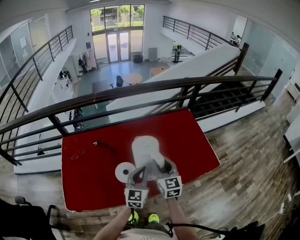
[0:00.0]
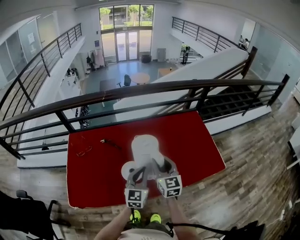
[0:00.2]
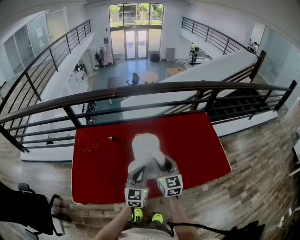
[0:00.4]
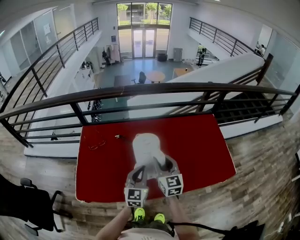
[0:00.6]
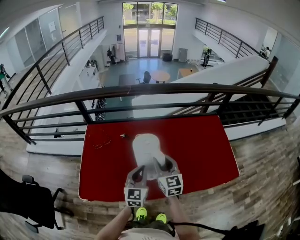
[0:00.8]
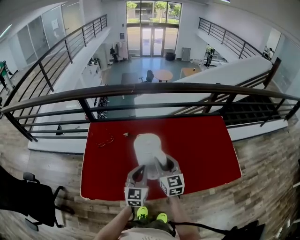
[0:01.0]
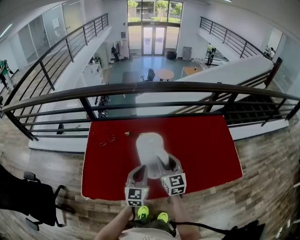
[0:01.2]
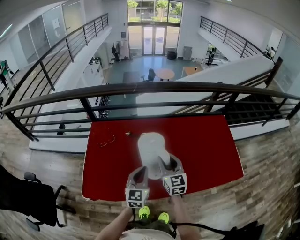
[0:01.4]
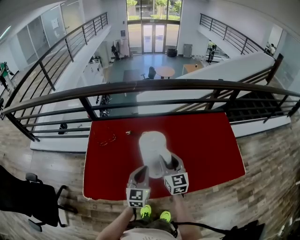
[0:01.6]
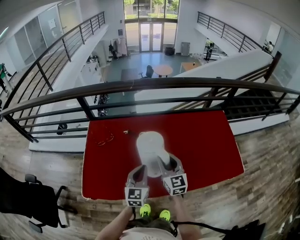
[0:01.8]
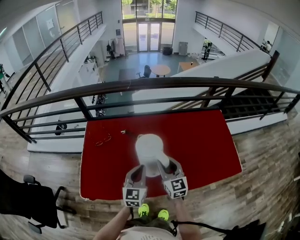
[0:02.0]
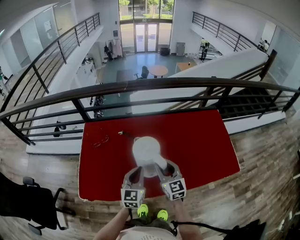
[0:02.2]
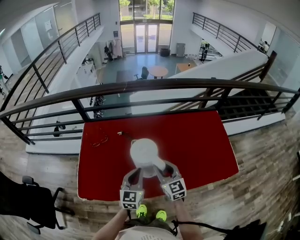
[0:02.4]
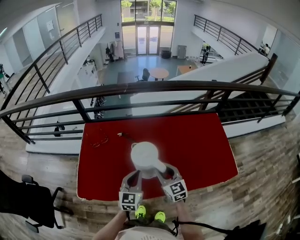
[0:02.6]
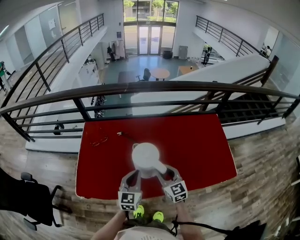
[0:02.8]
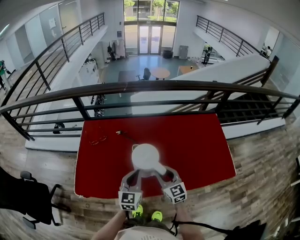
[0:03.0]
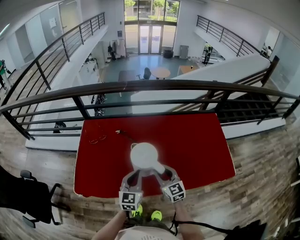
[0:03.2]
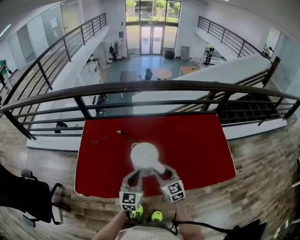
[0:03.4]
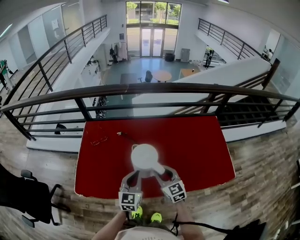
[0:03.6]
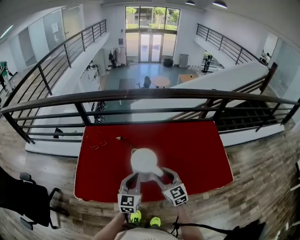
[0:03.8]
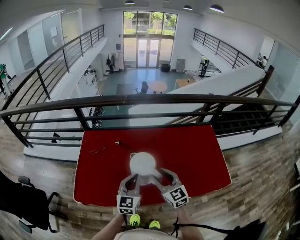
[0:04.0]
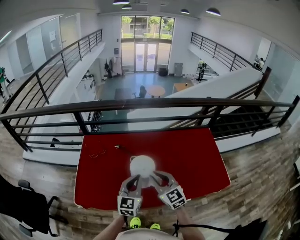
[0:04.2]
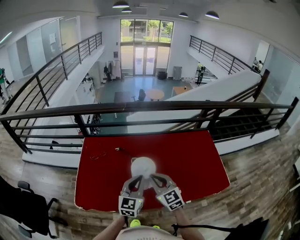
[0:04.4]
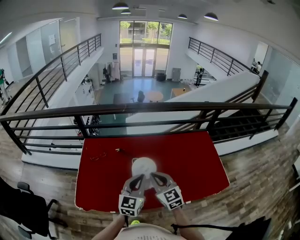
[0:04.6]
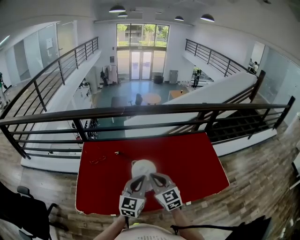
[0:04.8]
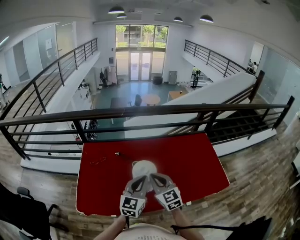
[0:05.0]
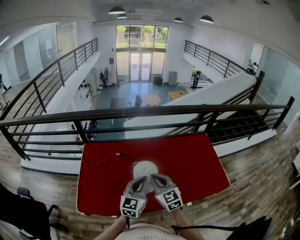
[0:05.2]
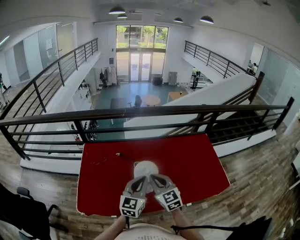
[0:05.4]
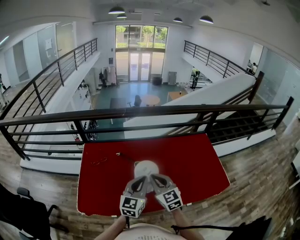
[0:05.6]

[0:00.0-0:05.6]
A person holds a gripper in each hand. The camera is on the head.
0:00.0 to 0:01.4: The grippers both shift to the left by roughly 15 cm.
0:01.4 to 0:02.8: The right gripper moves backward and downward, some 10 cm.
0:02.8 to 0:04.2: Both grippers move upward, roughly 10 cm.
0:04.2 to 0:05.6: The grippers move only a little.

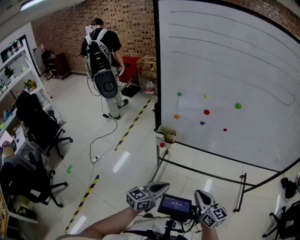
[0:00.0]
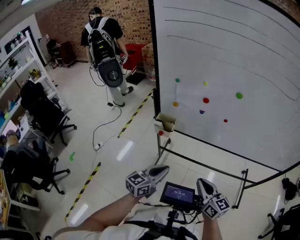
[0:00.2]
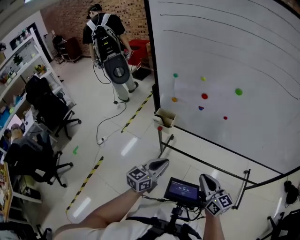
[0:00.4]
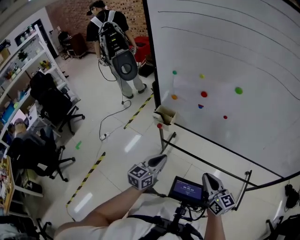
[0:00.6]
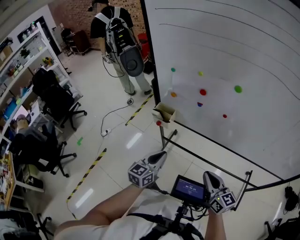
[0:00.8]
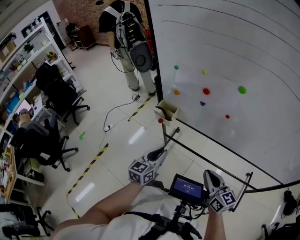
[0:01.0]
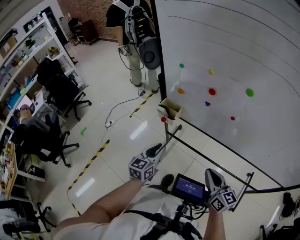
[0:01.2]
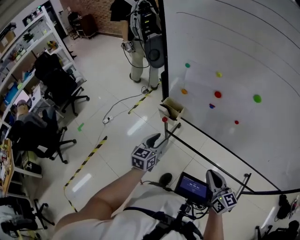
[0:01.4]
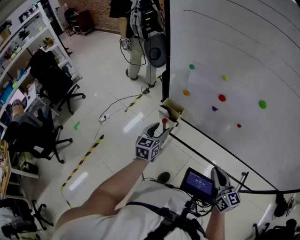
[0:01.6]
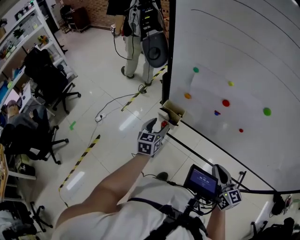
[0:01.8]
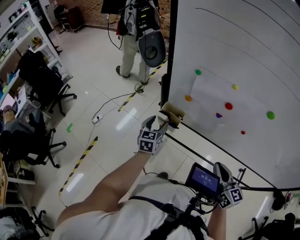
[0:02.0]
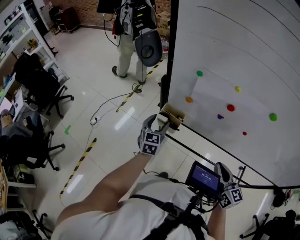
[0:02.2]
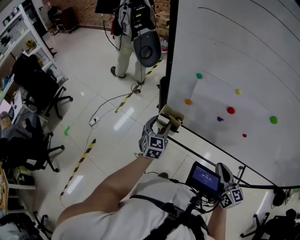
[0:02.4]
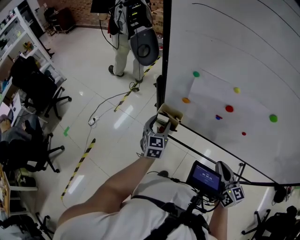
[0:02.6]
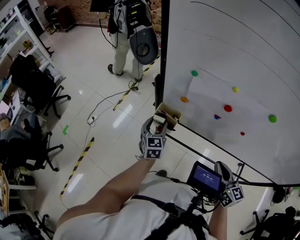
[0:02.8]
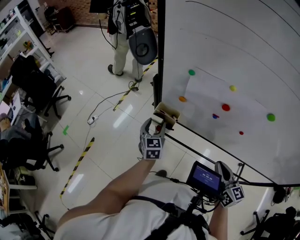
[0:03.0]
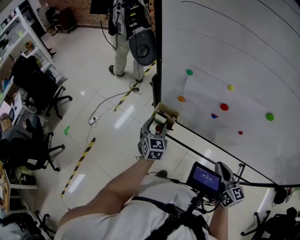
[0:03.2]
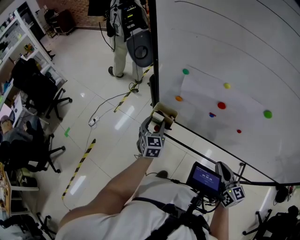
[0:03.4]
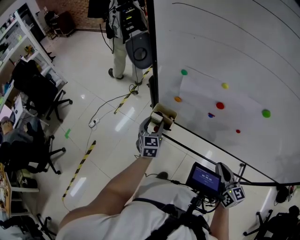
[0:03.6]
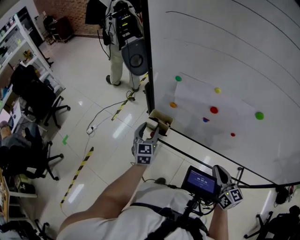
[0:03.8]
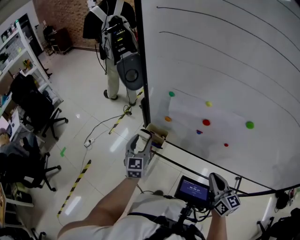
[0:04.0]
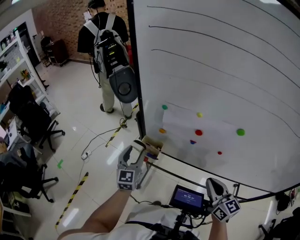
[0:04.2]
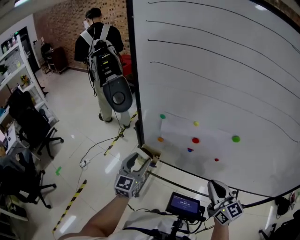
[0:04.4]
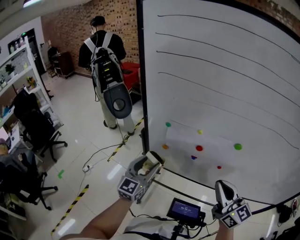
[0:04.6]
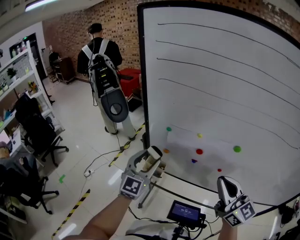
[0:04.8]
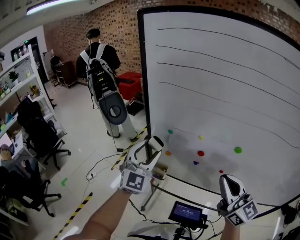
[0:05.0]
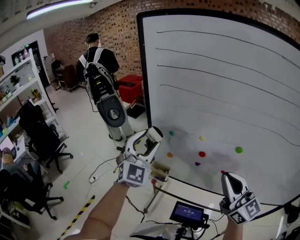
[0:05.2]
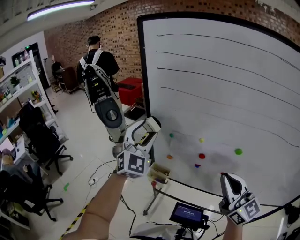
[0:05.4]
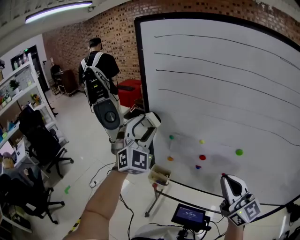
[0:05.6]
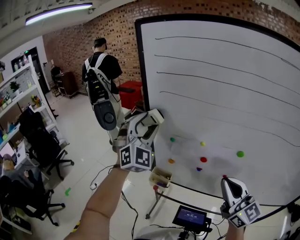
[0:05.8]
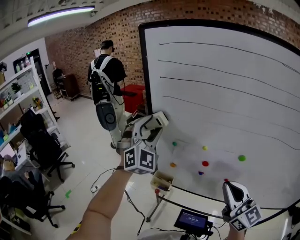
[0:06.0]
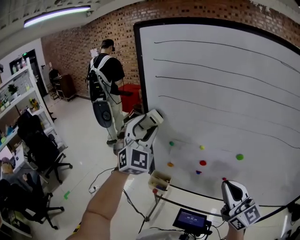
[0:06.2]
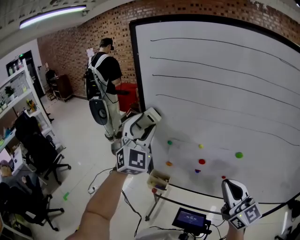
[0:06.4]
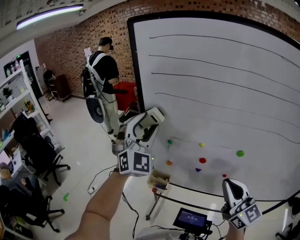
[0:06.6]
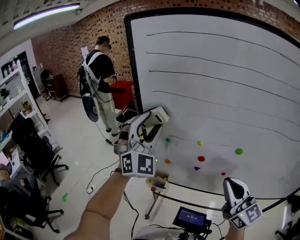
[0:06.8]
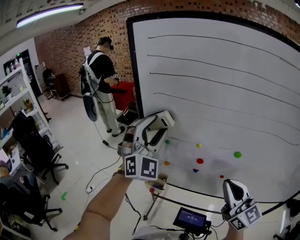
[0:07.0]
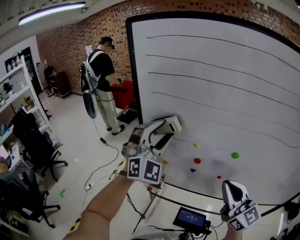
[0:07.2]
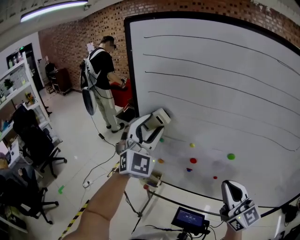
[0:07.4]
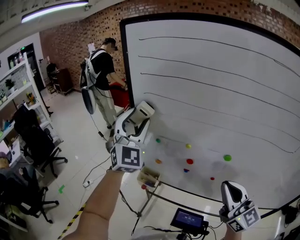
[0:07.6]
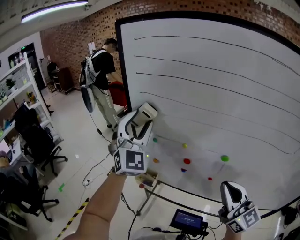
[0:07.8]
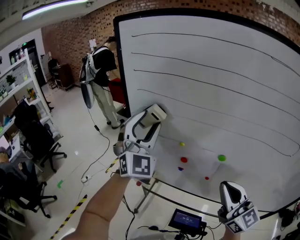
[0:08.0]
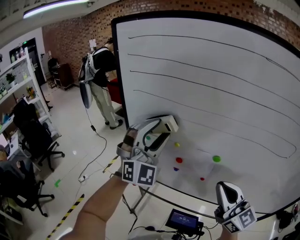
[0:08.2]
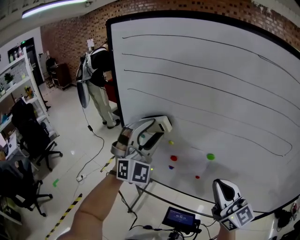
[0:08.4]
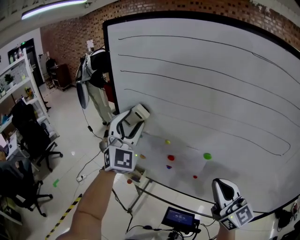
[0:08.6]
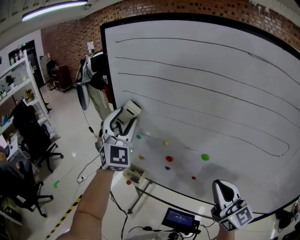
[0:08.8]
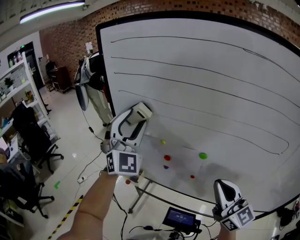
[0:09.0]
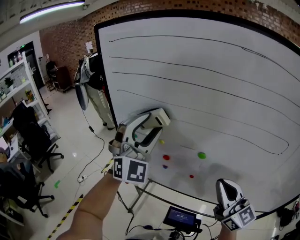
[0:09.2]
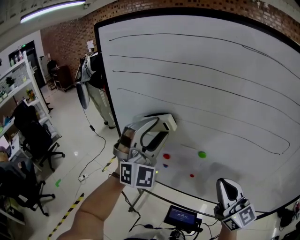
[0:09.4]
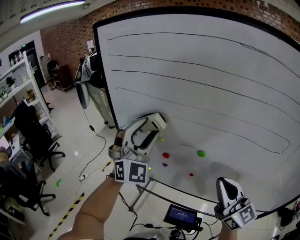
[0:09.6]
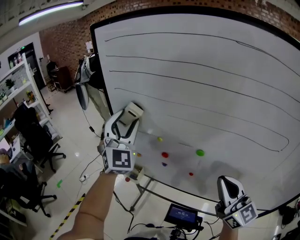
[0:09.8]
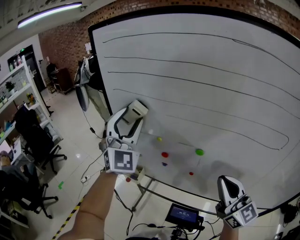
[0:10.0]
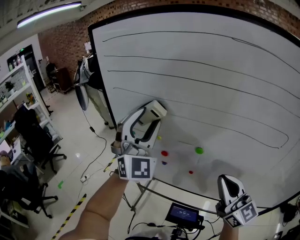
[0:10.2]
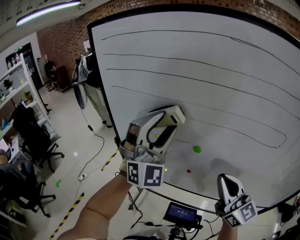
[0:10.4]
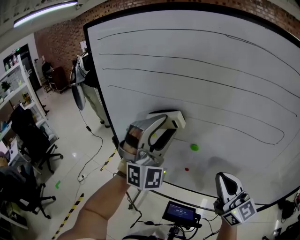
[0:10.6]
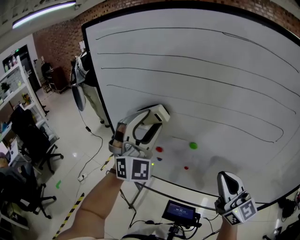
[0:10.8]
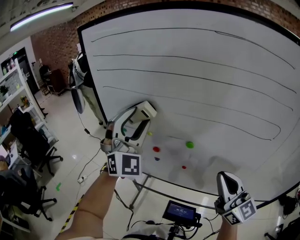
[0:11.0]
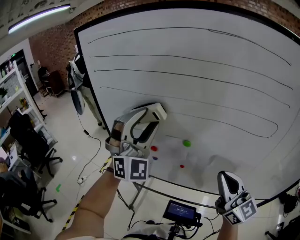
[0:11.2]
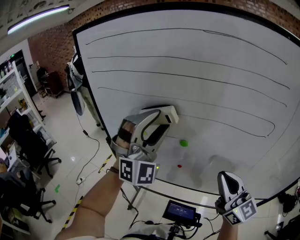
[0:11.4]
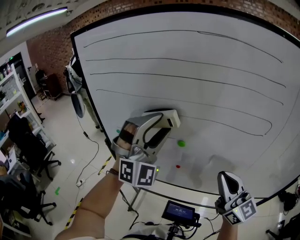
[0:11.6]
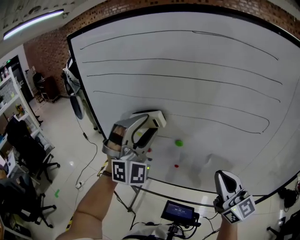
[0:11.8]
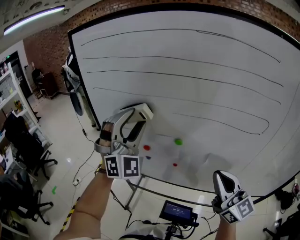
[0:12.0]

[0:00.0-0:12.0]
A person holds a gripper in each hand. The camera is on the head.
0:00.0 to 0:01.6: The right gripper heads forward and to the right, covering about 20 cm; the left gripper heads forward, covering approximately 25 cm, swivels about 40 degrees, and opens up.
0:01.6 to 0:03.0: The grippers both shift forward by about 10 cm.
0:03.0 to 0:04.4: Both grippers travel together upward, about 10 cm. The left gripper turns by roughly 30 degrees.
0:04.4 to 0:06.0: The left gripper is displaced upward by some 25 cm, and rolls clockwise, seen from behind, by some 60 degrees, while the right gripper shifts some 15 cm upward.
0:06.0 to 0:07.6: The left gripper travels to the right and back again, roughly 10 cm each way, while the right gripper goes some 5 cm to the right.
0:07.6 to 0:09.0: The right gripper is displaced to the right by about 10 cm, while the left gripper swings left and right, about 10 cm each way, with 2 reversals.
0:09.0 to 0:10.4: The left gripper swings left and right, roughly 15 cm each way, with 2 reversals.
0:10.4 to 0:12.0: The left gripper swings left and right, about 10 cm each way, with 2 reversals. The right gripper changes place by some 5 cm.

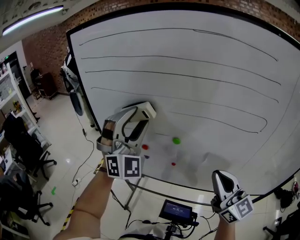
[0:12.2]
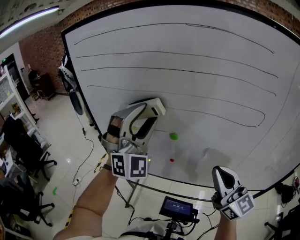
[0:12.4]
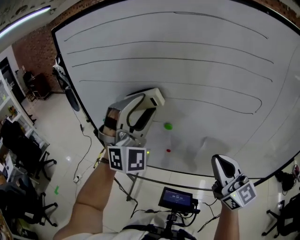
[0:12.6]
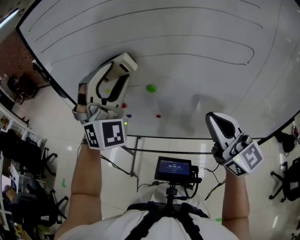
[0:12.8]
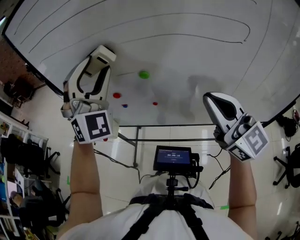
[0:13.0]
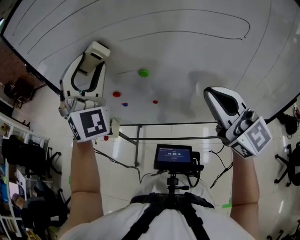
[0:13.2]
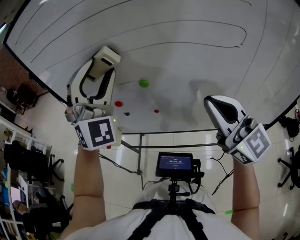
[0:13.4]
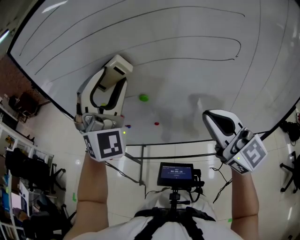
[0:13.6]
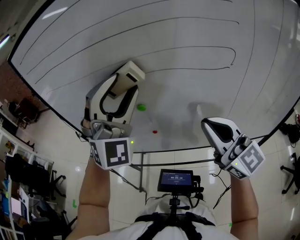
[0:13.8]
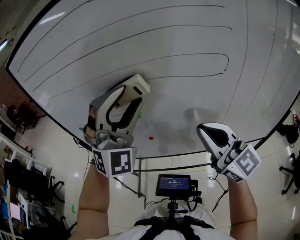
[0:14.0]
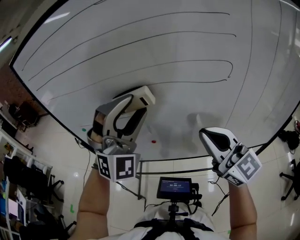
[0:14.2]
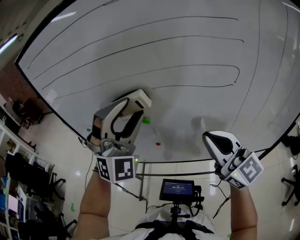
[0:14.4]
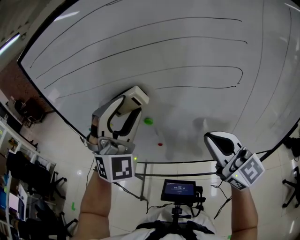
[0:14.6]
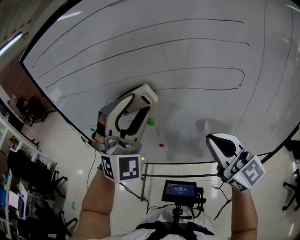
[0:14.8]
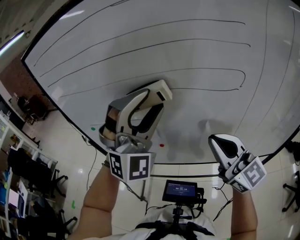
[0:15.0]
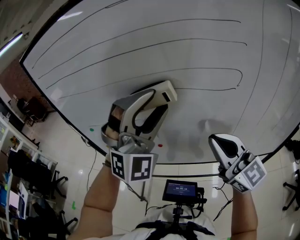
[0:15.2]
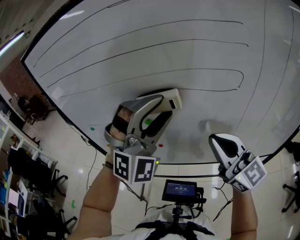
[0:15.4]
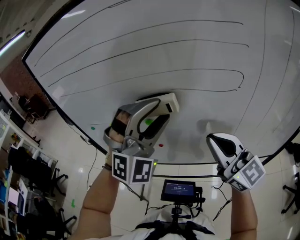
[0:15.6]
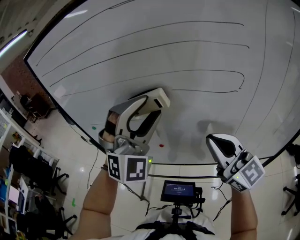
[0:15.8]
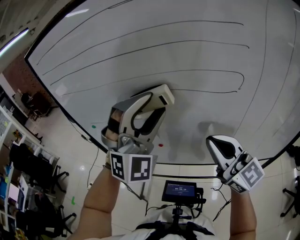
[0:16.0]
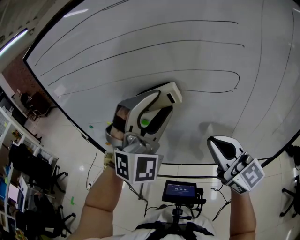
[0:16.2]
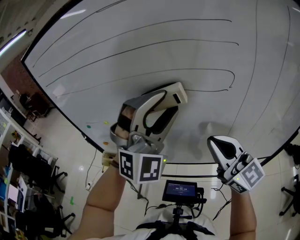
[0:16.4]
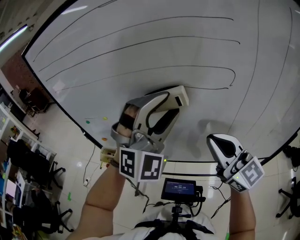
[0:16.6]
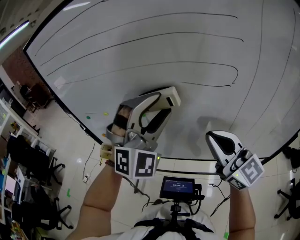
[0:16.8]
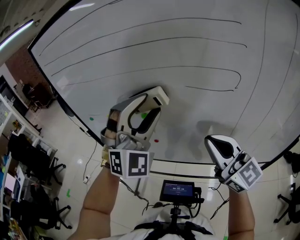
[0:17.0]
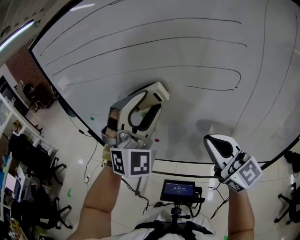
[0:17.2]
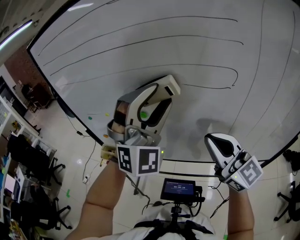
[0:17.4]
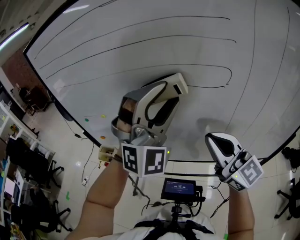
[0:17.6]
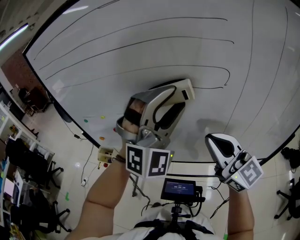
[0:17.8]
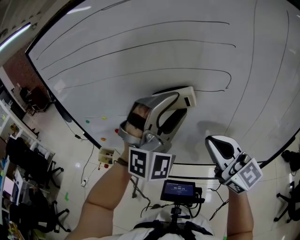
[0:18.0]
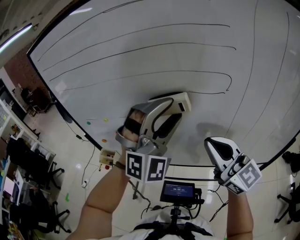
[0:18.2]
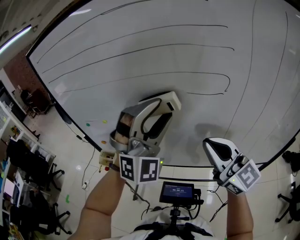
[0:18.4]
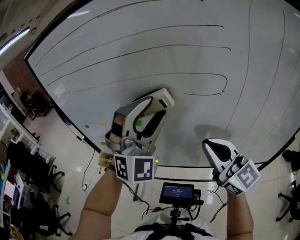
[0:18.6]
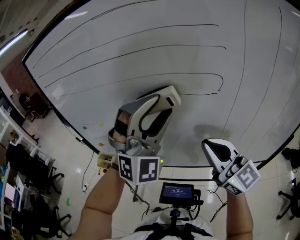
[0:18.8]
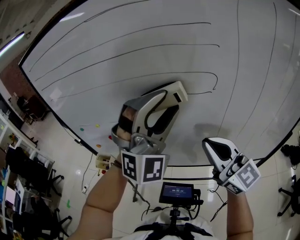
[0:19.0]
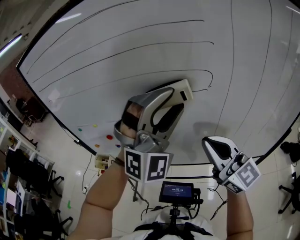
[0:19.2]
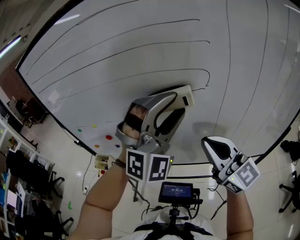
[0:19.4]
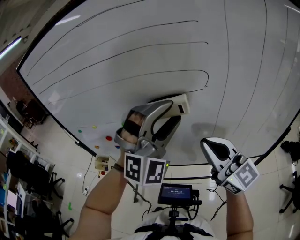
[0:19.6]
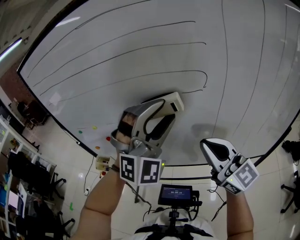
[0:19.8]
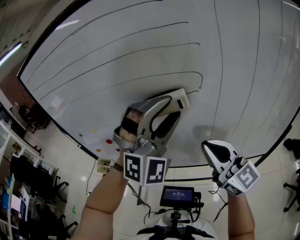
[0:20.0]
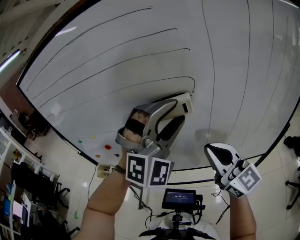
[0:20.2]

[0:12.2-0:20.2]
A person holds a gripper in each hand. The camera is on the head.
0:12.2 to 0:13.8: The right gripper is displaced to the right by about 5 cm, while the left gripper moves left and right over about 15 cm, changing direction 2 times, and turns by roughly 20 degrees.
0:13.8 to 0:15.4: The left gripper shifts by approximately 5 cm.
0:15.4 to 0:17.0: The left gripper moves about 5 cm to the right and comes back.
0:18.6 to 0:20.2: The left gripper shifts approximately 15 cm to the right. The right gripper is displaced to the right by approximately 5 cm.
